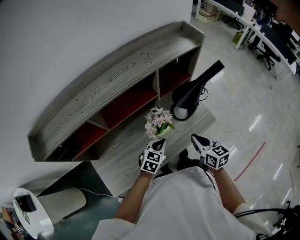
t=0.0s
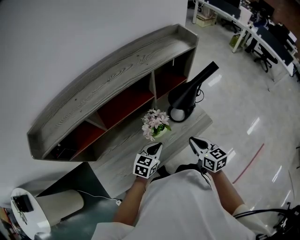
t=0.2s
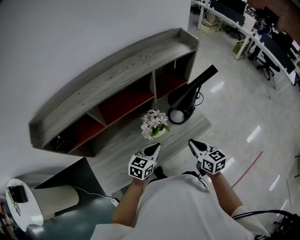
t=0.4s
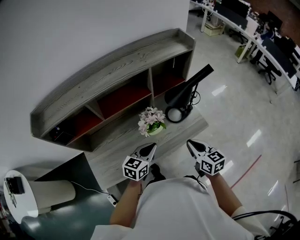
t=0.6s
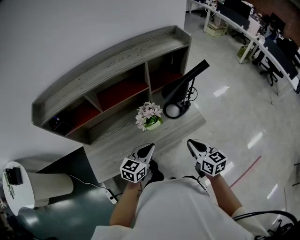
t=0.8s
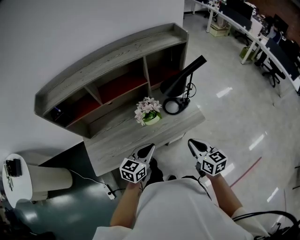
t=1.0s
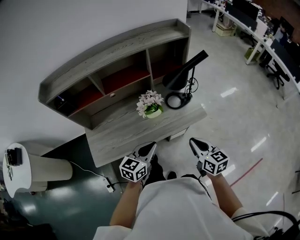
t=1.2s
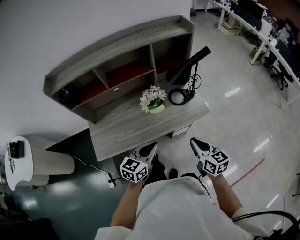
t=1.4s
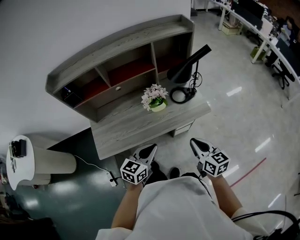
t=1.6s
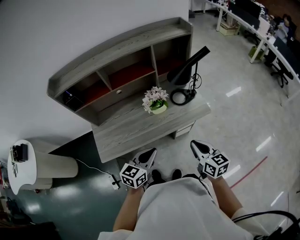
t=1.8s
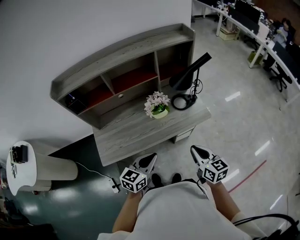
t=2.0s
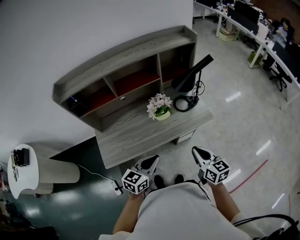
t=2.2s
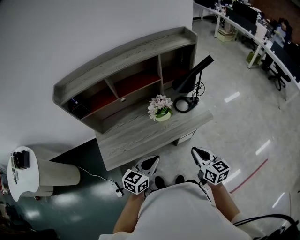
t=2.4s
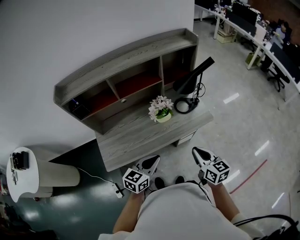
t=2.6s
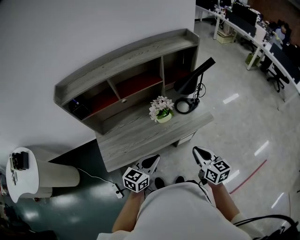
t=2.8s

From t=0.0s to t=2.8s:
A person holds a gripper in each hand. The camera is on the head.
From t=0.0s to t=1.4s: The right gripper goes some 20 cm backward and to the right. The left gripper heads backward and upward, covering approximately 25 cm, and rotates some 30 degrees.
From t=1.4s to t=2.8s: Both grippers move to the left, about 5 cm.

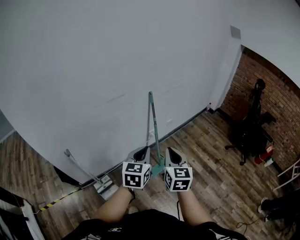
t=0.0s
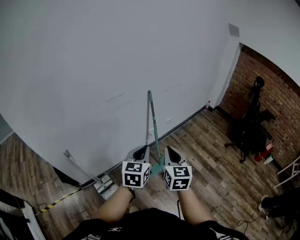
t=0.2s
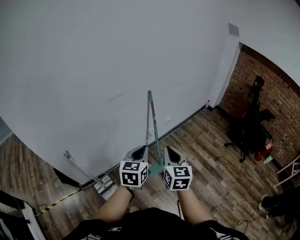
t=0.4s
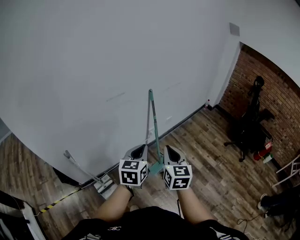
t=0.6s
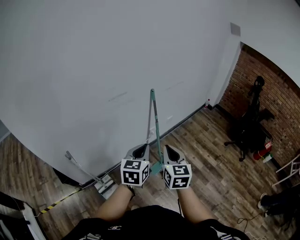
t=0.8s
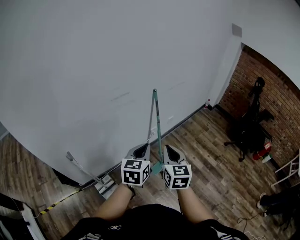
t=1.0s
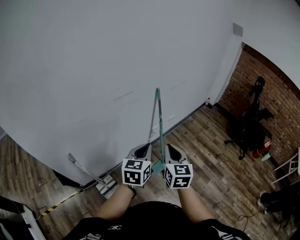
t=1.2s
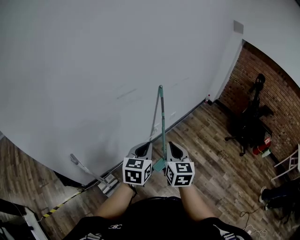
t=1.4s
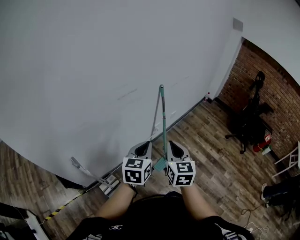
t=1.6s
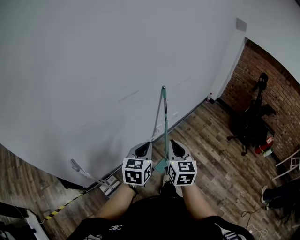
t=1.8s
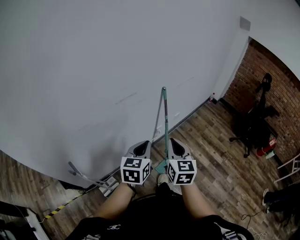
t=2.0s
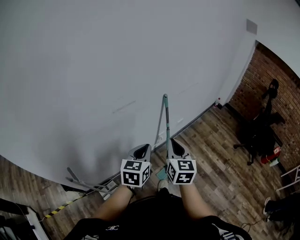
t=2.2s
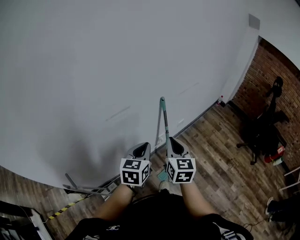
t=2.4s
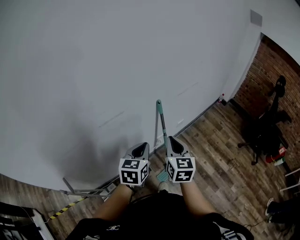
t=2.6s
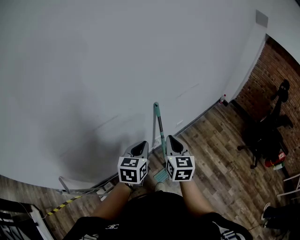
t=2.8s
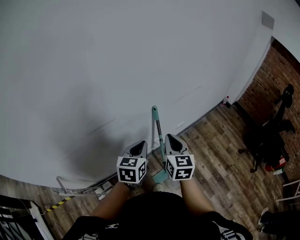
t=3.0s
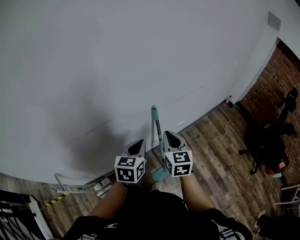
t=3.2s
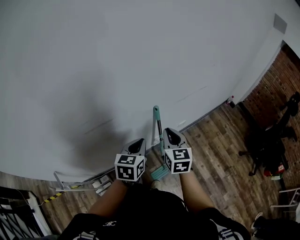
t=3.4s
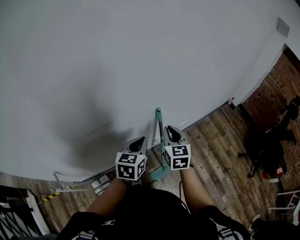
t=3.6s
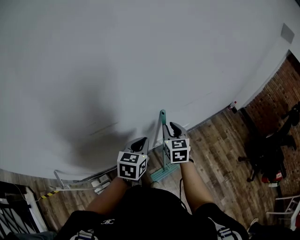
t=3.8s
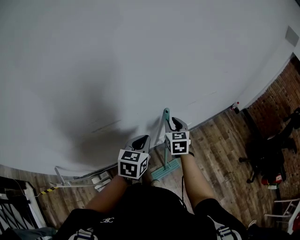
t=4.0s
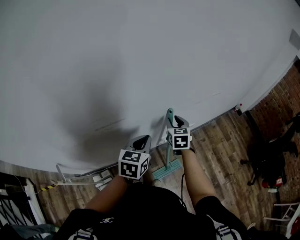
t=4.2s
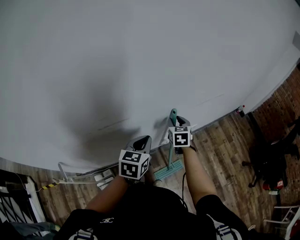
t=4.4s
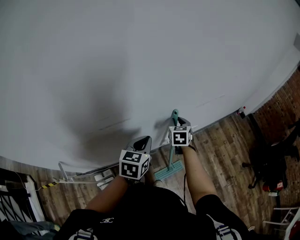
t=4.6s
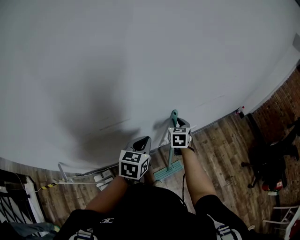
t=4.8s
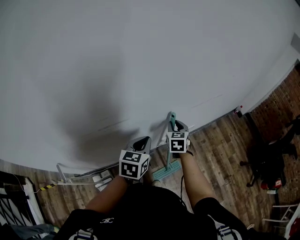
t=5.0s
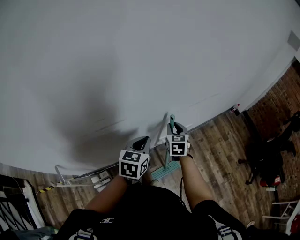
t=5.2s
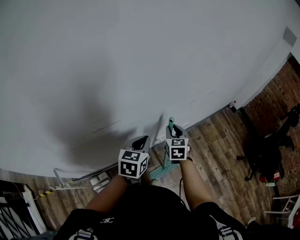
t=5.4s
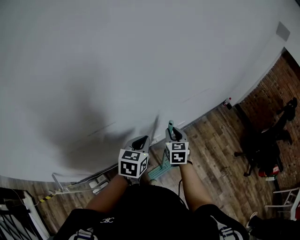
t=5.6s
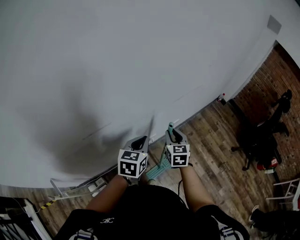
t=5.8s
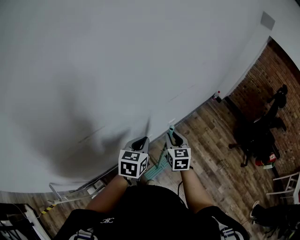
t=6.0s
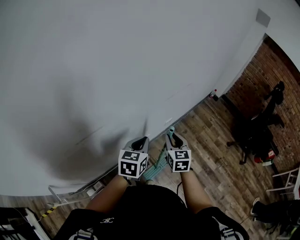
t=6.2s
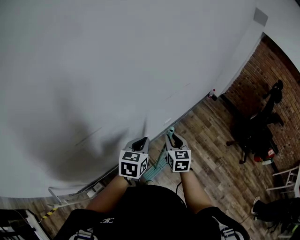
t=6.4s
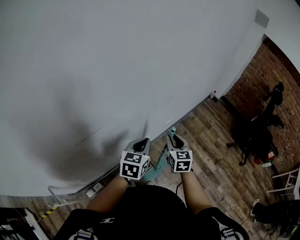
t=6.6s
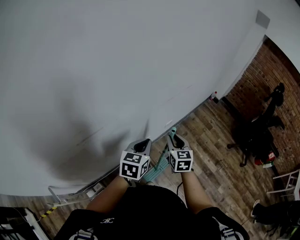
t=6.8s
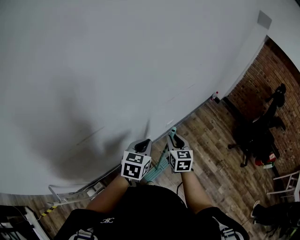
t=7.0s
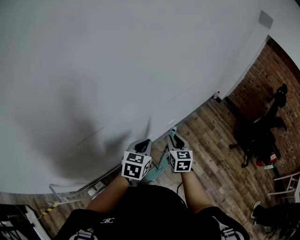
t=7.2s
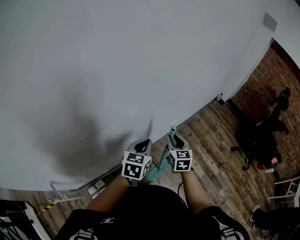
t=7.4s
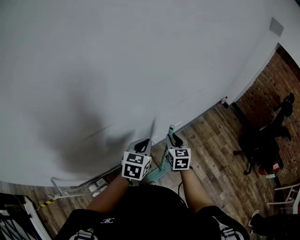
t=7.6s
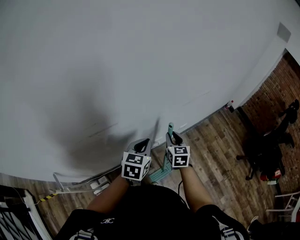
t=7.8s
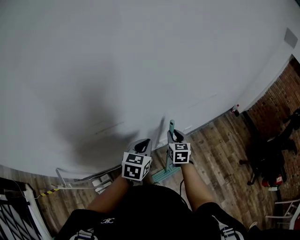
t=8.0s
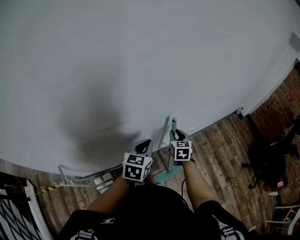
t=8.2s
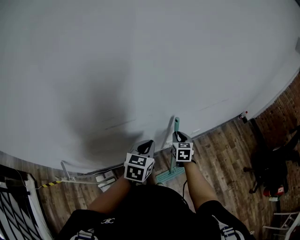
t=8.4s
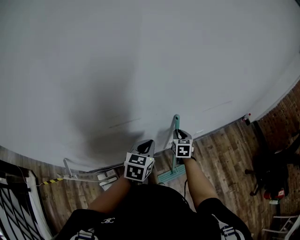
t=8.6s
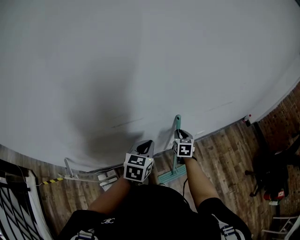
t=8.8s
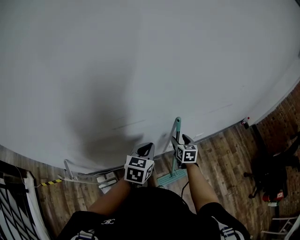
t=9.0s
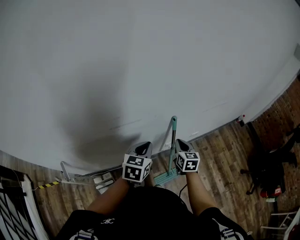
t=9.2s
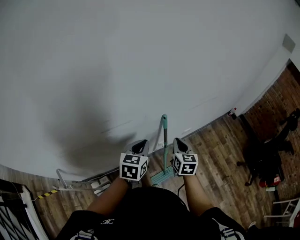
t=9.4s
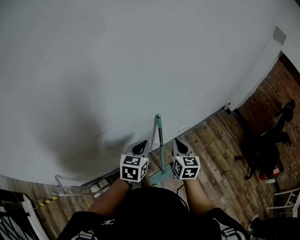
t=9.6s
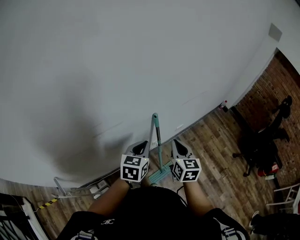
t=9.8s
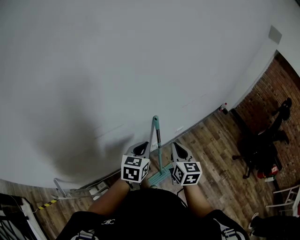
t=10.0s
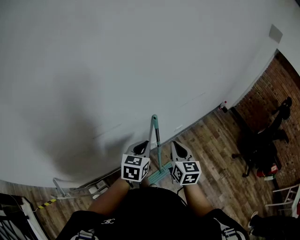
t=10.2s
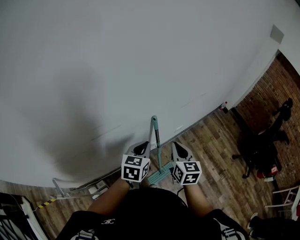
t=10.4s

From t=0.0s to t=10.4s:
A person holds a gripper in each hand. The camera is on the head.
From t=0.0s to t=1.4s: The grippers both shift to the left by approximately 10 cm.
From t=1.4s to t=3.0s: Both grippers travel together forward, approximately 30 cm.
From t=3.0s to t=4.4s: The right gripper moves forward and downward, approximately 20 cm, changes its angle by some 20 degrees, and opens its fingers, while the left gripper ends up roughly 5 cm from where it was.
From t=4.4s to t=6.0s: The left gripper goes approximately 10 cm to the right; the right gripper moves to the right and backward, approximately 15 cm.
From t=6.0s to t=7.4s: The grippers make only small movements.
From t=7.4s to t=9.0s: The right gripper travels to the left and downward by approximately 15 cm, and opens up; the left gripper shifts about 15 cm to the left.
From t=9.0s to t=10.4s: The right gripper is displaced upward, backward and to the right by roughly 15 cm, and closes; the left gripper heads to the right, covering roughly 5 cm.

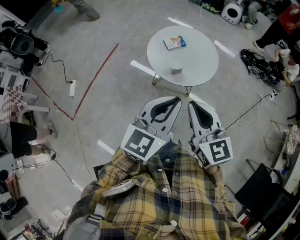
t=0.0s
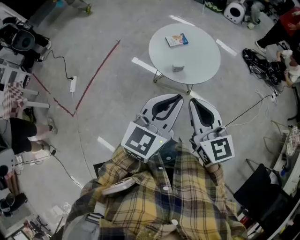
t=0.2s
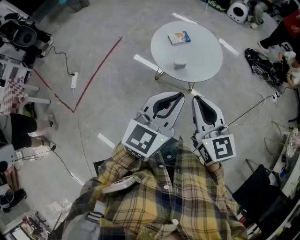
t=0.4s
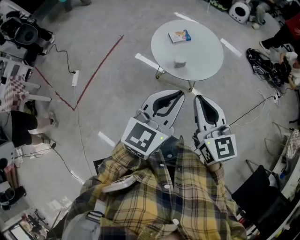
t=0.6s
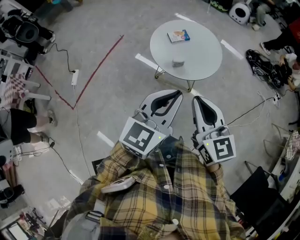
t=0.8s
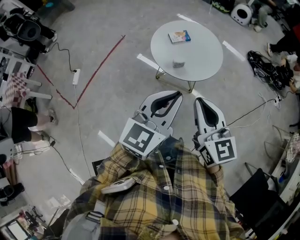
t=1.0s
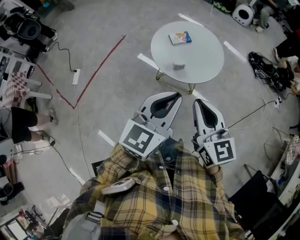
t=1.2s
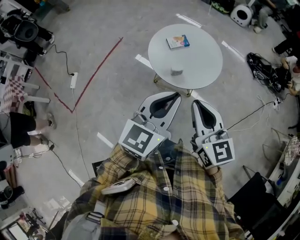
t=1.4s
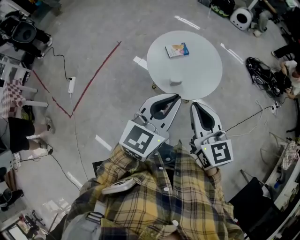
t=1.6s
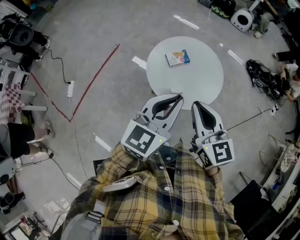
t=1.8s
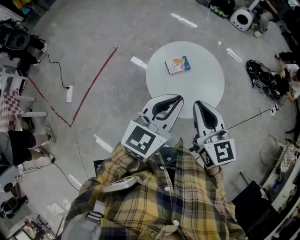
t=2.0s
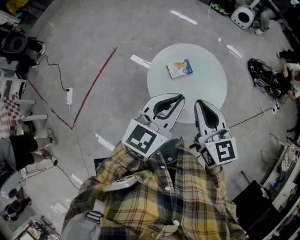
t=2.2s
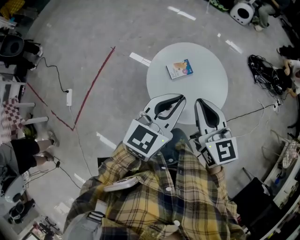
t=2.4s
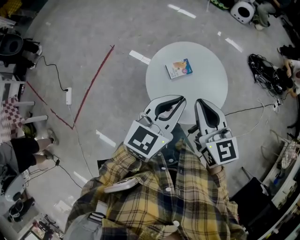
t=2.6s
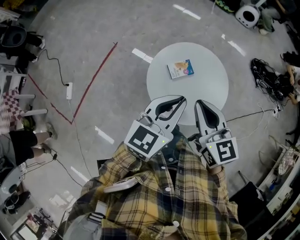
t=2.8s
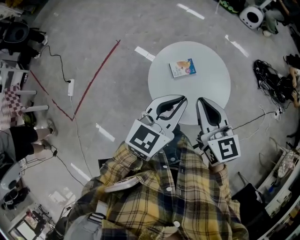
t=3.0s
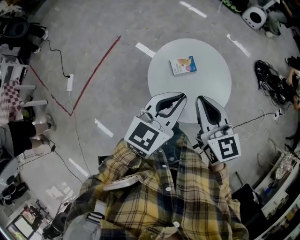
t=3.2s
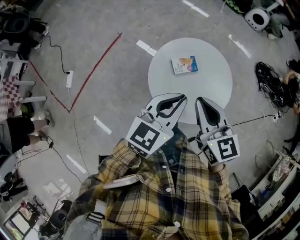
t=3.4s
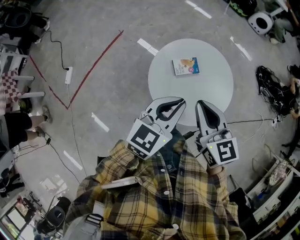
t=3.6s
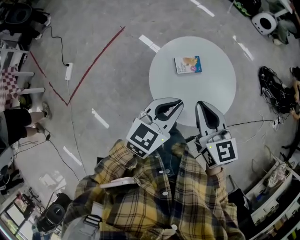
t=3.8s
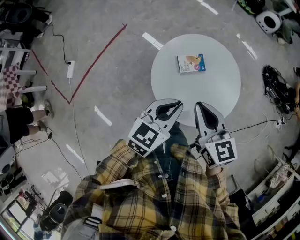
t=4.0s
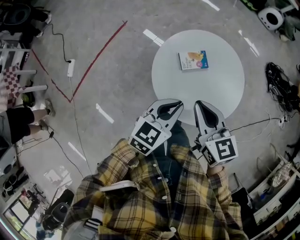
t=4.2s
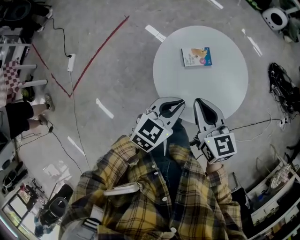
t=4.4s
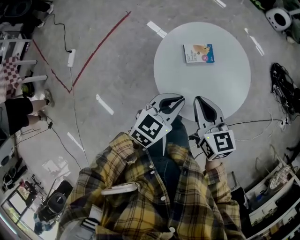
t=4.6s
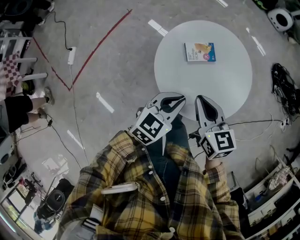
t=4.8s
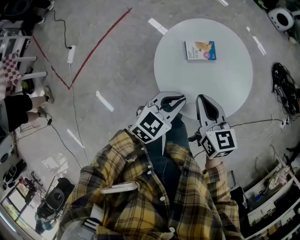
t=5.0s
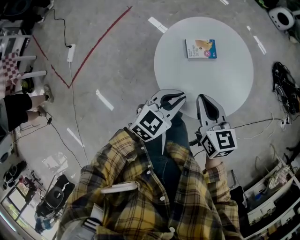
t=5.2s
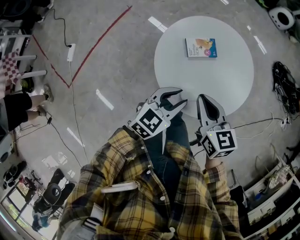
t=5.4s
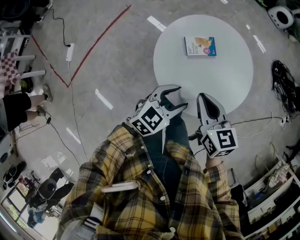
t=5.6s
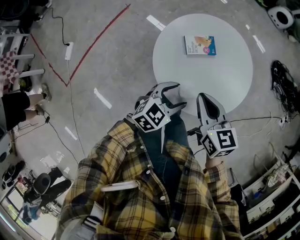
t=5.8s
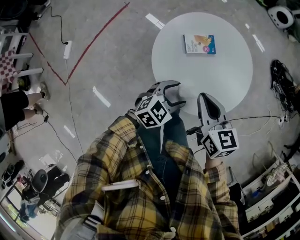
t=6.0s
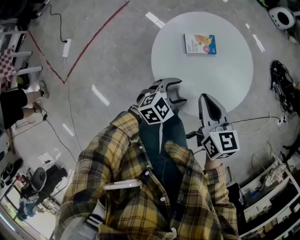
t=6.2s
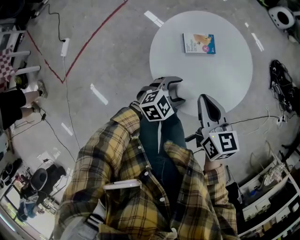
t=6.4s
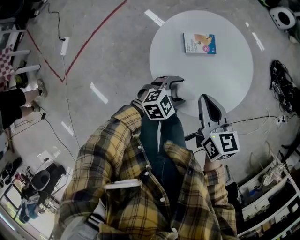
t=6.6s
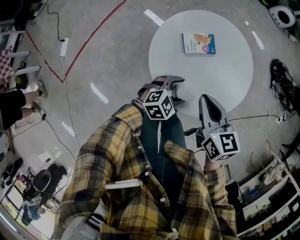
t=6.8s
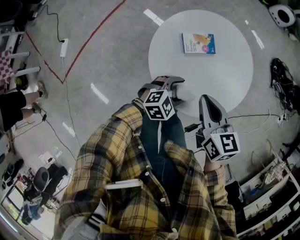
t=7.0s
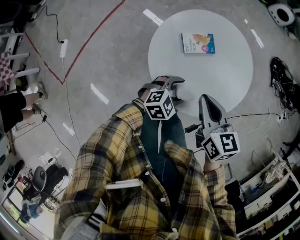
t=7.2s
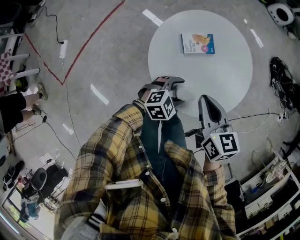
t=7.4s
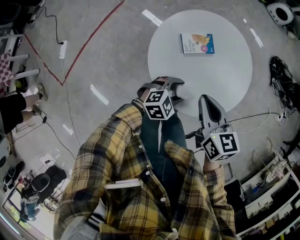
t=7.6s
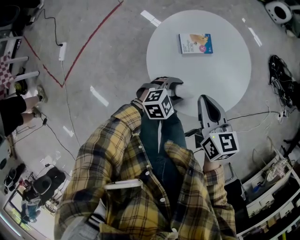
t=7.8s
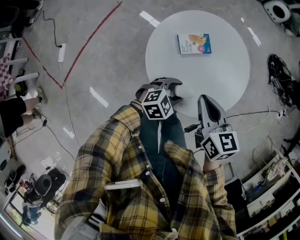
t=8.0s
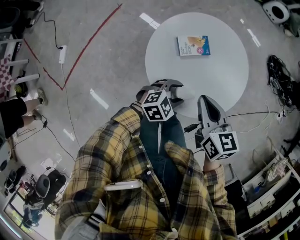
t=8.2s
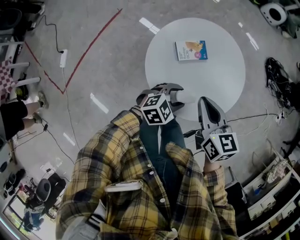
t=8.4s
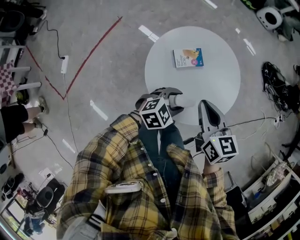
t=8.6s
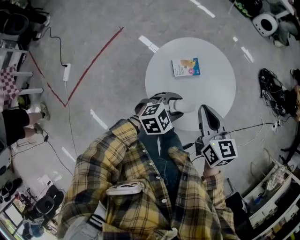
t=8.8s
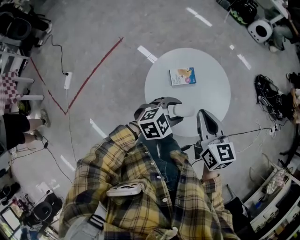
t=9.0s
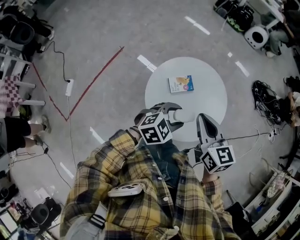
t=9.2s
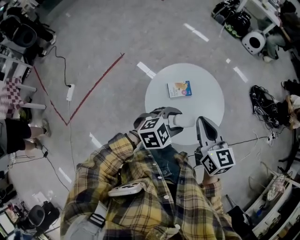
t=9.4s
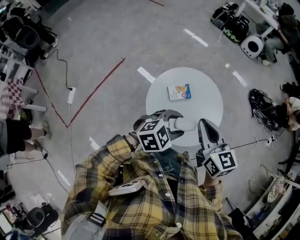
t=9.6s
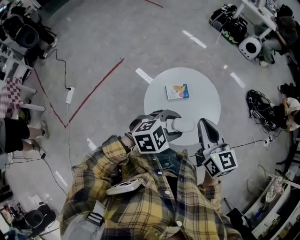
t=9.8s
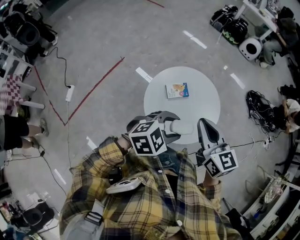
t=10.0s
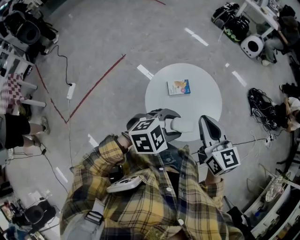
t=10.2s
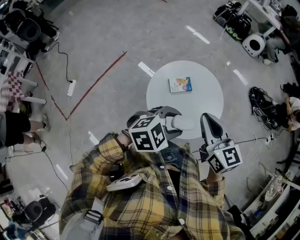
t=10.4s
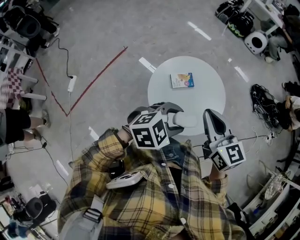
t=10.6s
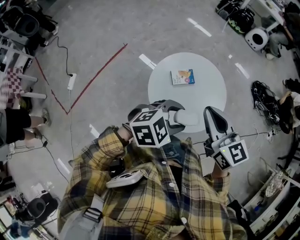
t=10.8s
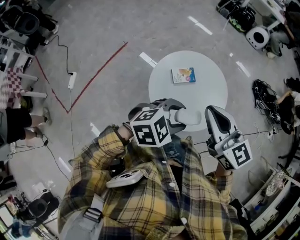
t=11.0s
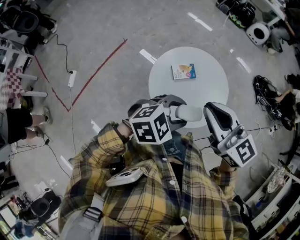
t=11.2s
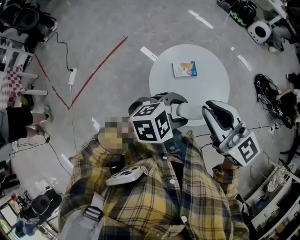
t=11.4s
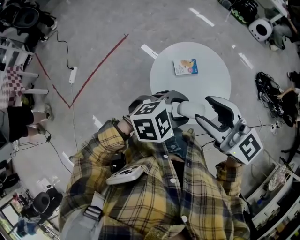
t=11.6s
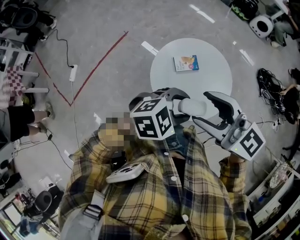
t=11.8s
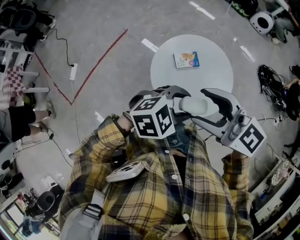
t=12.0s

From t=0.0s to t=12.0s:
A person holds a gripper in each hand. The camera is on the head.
From t=0.0s to t=1.6s: Both grippers move forward, about 10 cm.
From t=1.6s to t=3.0s: Both grippers move forward, approximately 20 cm.
From t=3.0s to t=4.4s: Both grippers move downward, some 15 cm.
From t=4.4s to t=6.0s: The right gripper ends up approximately 5 cm from where it was, while the left gripper heads downward, covering some 10 cm, rotates about 20 degrees, and opens its fingers.
From t=6.0s to t=7.6s: The left gripper heads downward, covering about 5 cm.
From t=7.6s to t=9.0s: The right gripper travels upward by some 10 cm. The left gripper goes some 15 cm upward.
From t=9.0s to t=10.4s: The right gripper heads upward, covering some 10 cm. The left gripper shifts about 15 cm upward and backward.
From t=10.4s to t=12.0s: The right gripper changes place by approximately 10 cm, swivels approximately 40 degrees, and opens its fingers.
